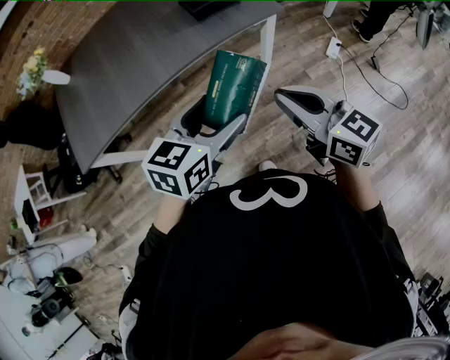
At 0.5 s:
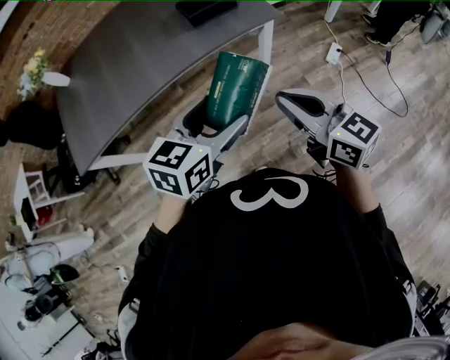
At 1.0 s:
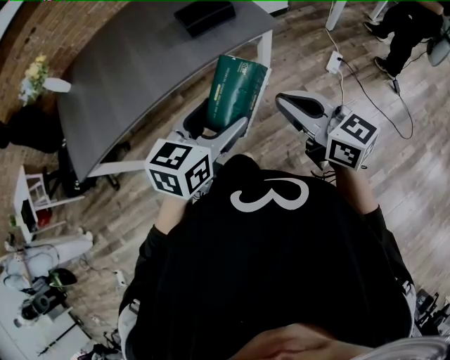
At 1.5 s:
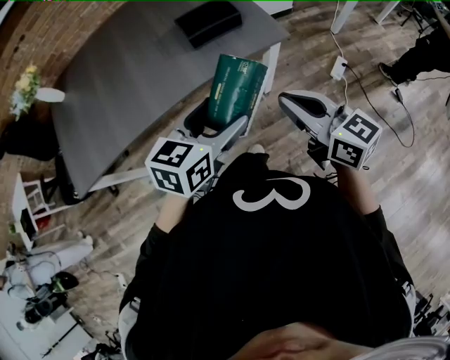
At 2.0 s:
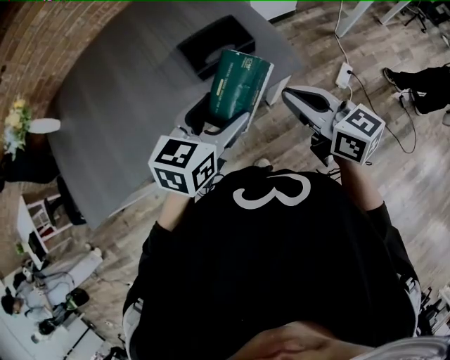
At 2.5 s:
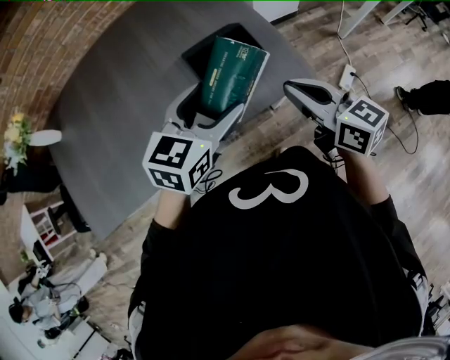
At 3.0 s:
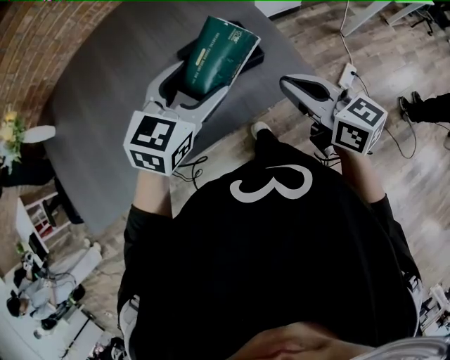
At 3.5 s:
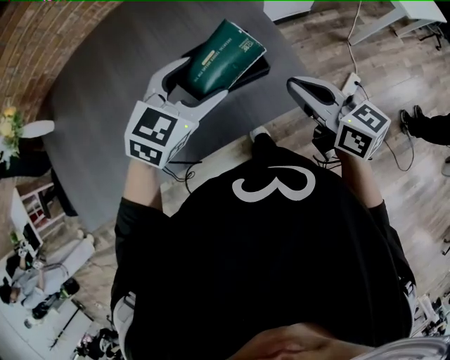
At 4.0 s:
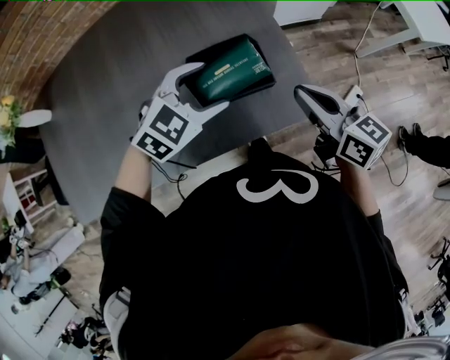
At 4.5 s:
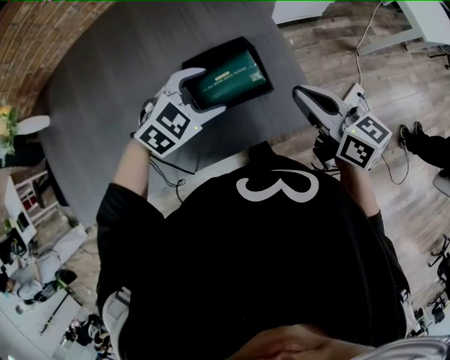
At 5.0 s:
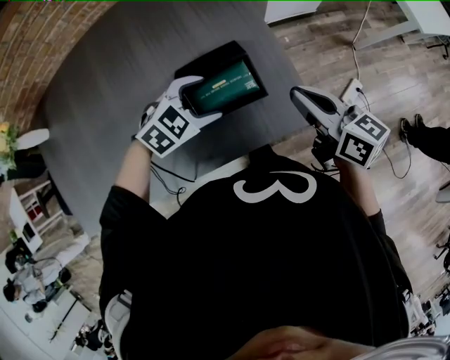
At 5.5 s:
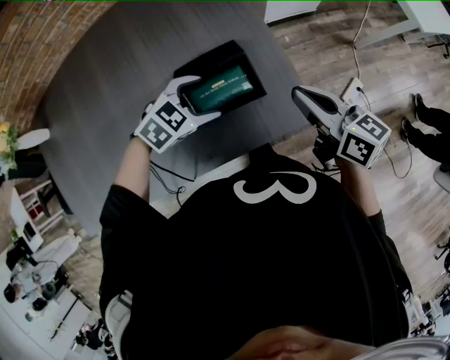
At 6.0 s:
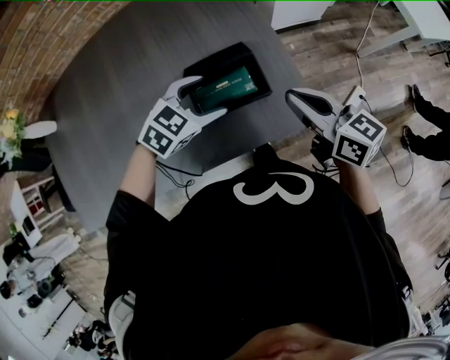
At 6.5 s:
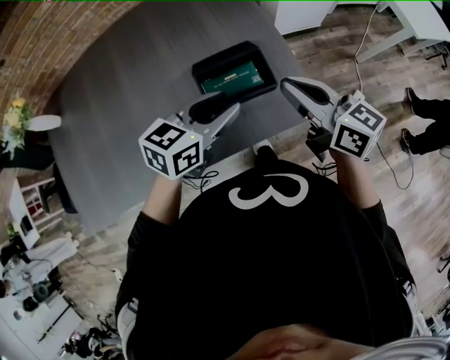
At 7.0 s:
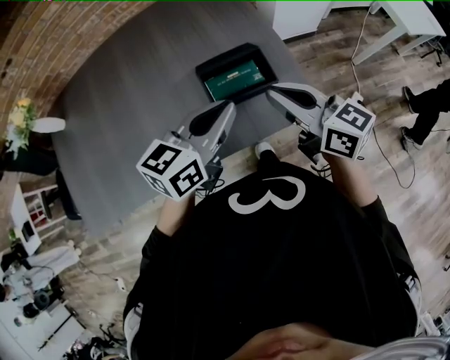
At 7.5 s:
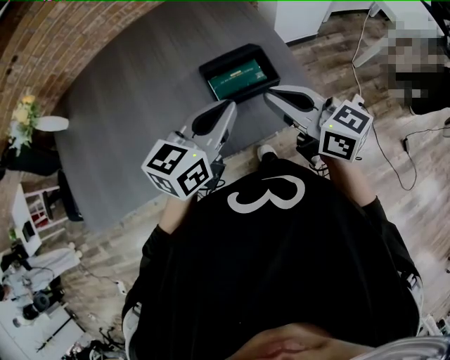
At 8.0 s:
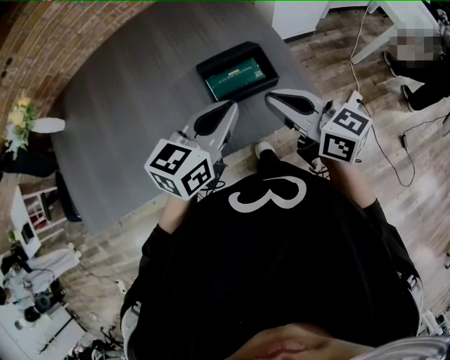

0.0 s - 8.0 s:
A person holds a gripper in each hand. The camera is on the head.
0.0 s - 2.0 s: Both grippers travel together forward, about 35 cm.
2.0 s - 4.0 s: Both grippers travel together forward, approximately 15 cm. The left gripper rotates about 30 degrees.
4.0 s - 6.0 s: The left gripper heads downward, covering some 5 cm.
6.0 s - 8.0 s: The left gripper travels upward and backward by roughly 15 cm, swivels roughly 40 degrees, and closes up; the right gripper heads to the left and backward, covering roughly 10 cm.

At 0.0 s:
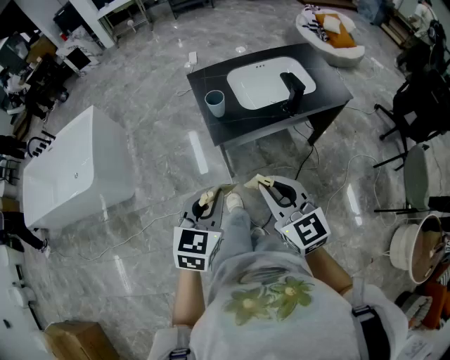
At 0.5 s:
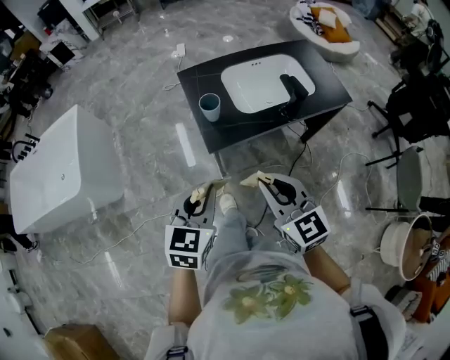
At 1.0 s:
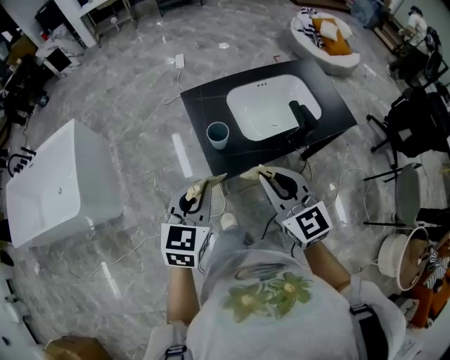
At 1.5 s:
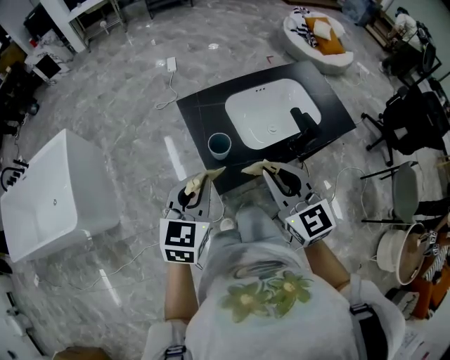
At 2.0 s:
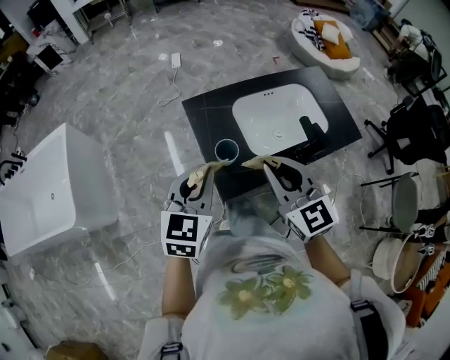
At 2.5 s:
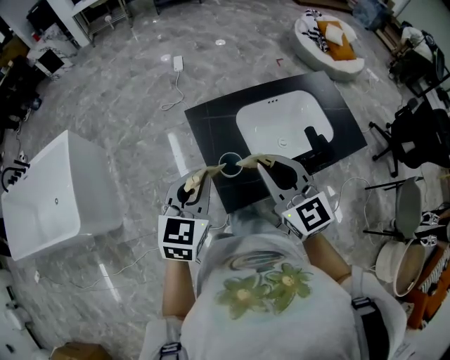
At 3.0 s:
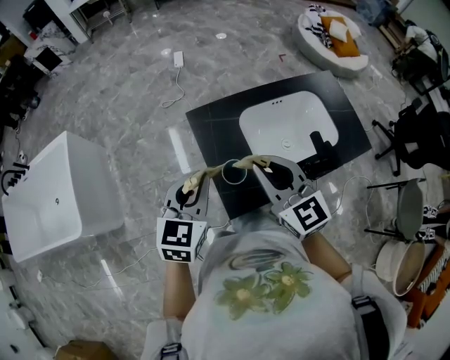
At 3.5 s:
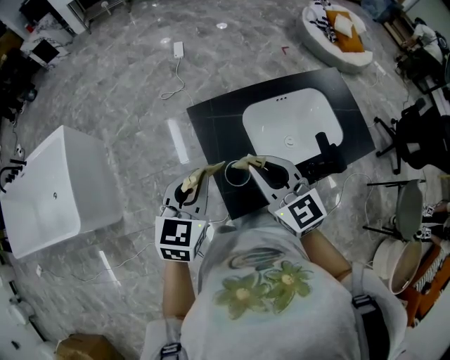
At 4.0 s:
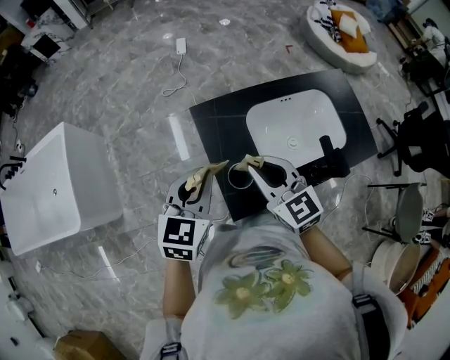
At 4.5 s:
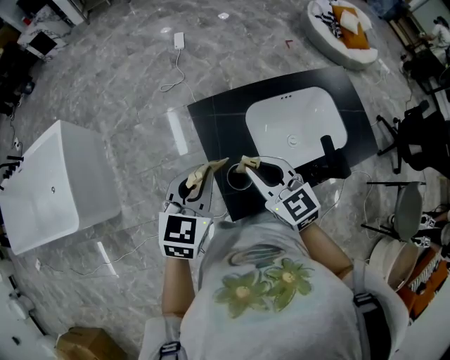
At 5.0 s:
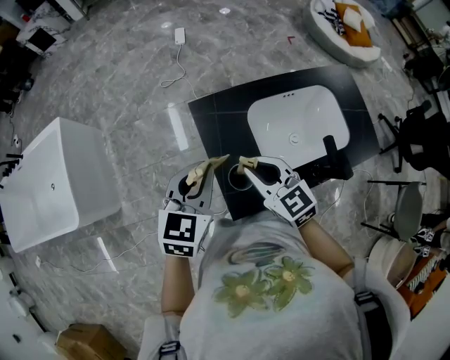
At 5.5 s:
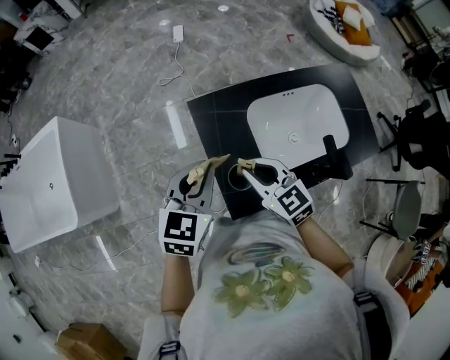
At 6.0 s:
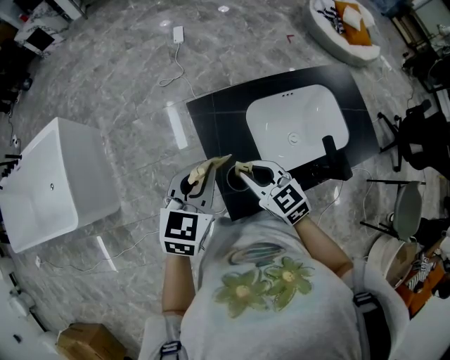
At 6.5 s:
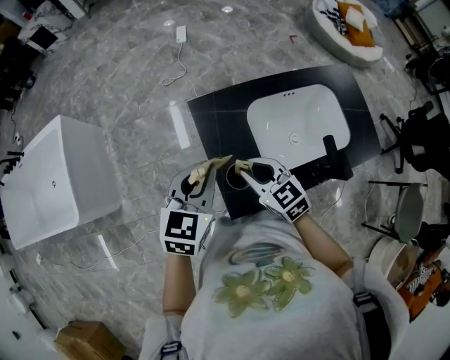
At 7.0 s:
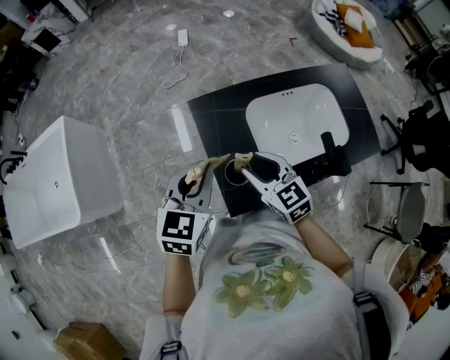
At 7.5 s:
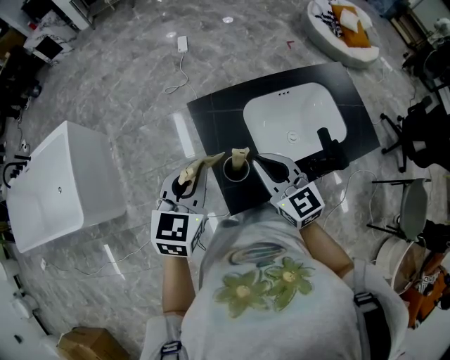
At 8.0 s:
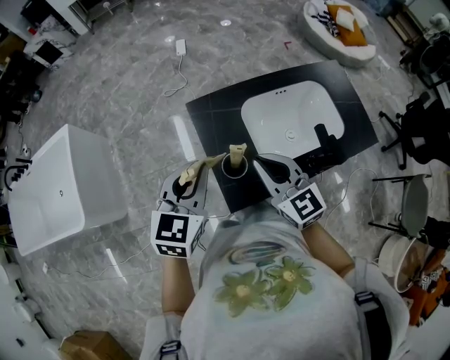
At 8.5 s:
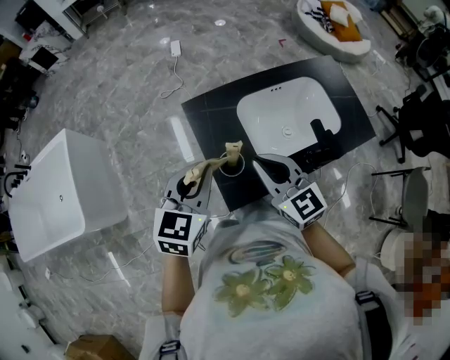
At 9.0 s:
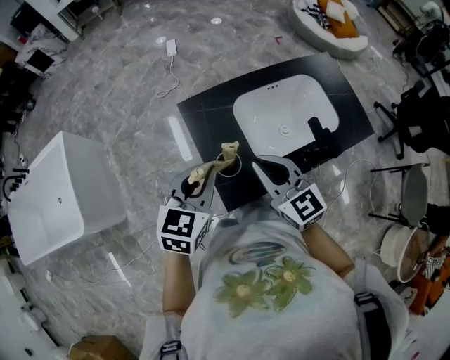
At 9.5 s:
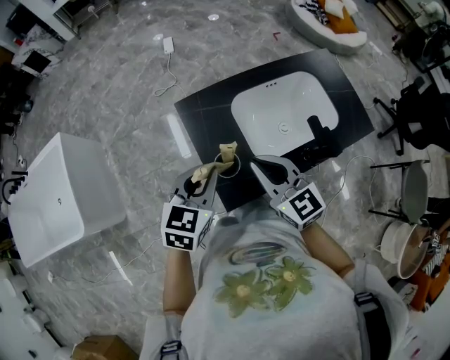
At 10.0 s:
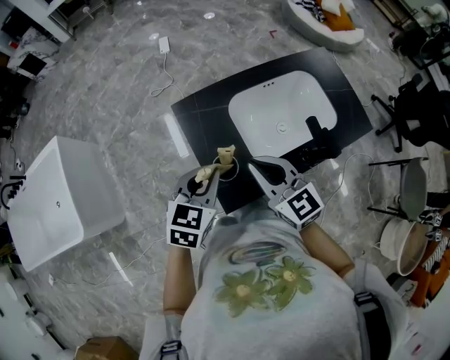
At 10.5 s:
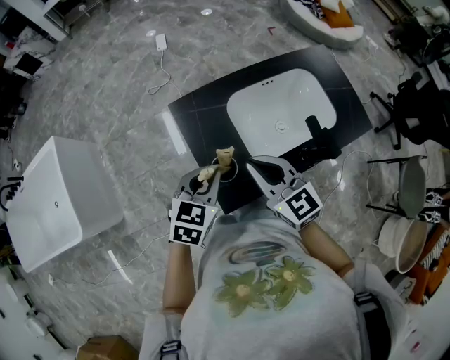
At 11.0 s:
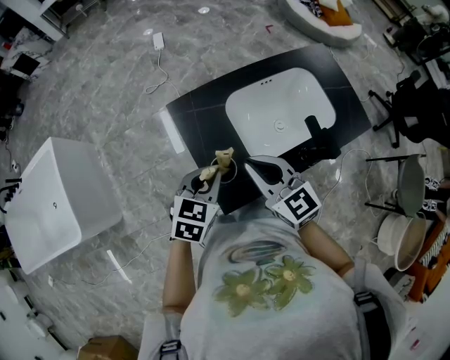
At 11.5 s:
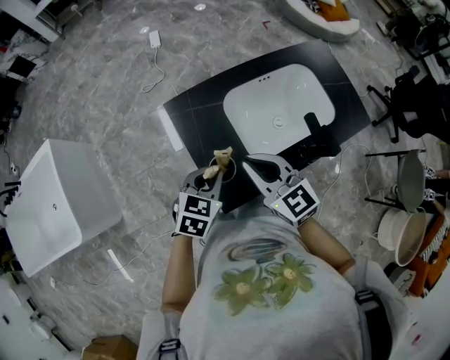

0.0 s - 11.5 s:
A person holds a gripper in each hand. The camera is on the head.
0.0 s - 2.0 s: Both grippers move forward, approximately 40 cm.
2.0 s - 4.0 s: The right gripper shifts about 20 cm forward and downward. The left gripper shifts about 15 cm forward.
4.0 s - 6.0 s: The right gripper heads downward, covering approximately 10 cm.
6.0 s - 7.5 s: The right gripper moves upward, approximately 10 cm, and opens and closes again, while the left gripper changes place by roughly 5 cm.
7.5 s - 9.5 s: The left gripper shifts some 5 cm to the right.
9.5 s - 11.5 s: The left gripper goes roughly 10 cm downward.

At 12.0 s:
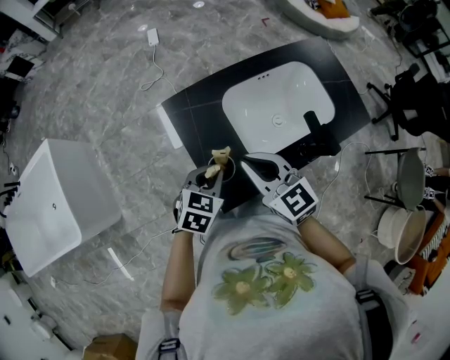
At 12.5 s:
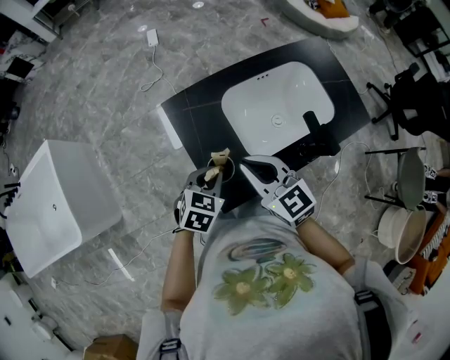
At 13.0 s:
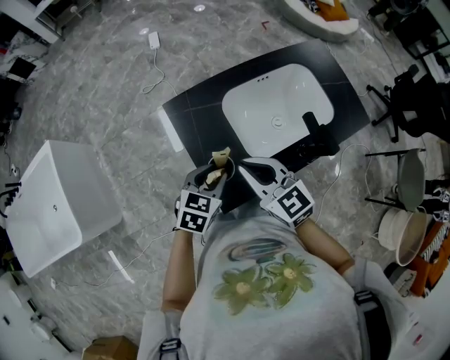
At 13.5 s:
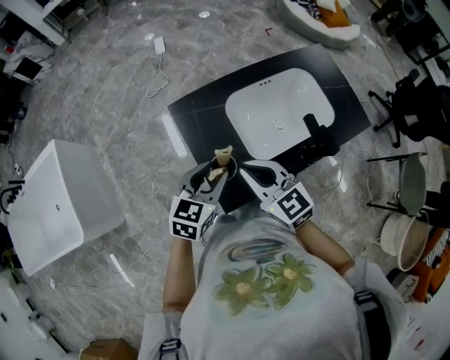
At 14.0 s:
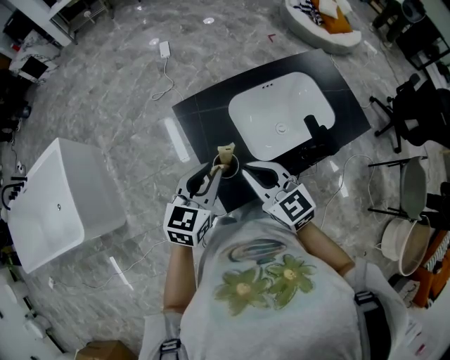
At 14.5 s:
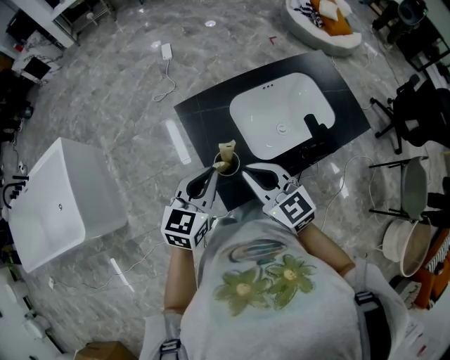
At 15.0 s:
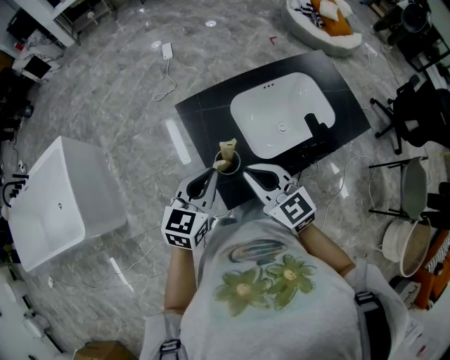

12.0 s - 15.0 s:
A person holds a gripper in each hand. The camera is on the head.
12.0 s - 13.5 s: The left gripper is displaced upward by roughly 5 cm, and opens its fingers.
13.5 s - 15.0 s: The left gripper heads upward, covering approximately 5 cm, and closes up.

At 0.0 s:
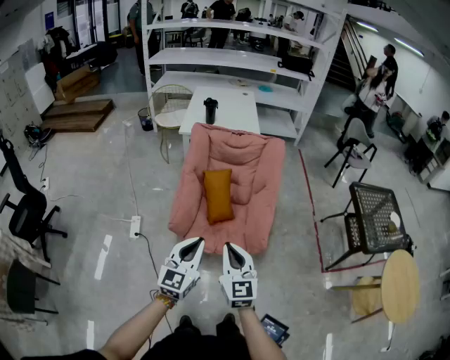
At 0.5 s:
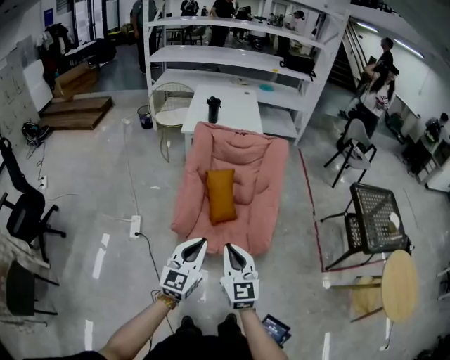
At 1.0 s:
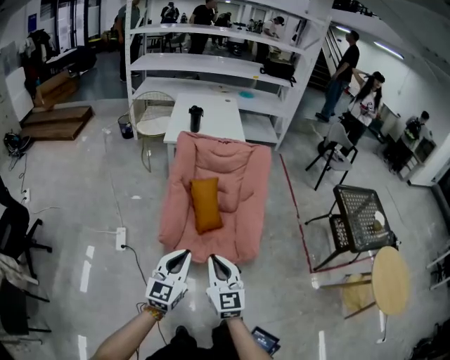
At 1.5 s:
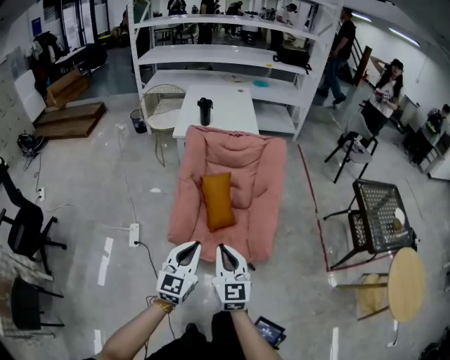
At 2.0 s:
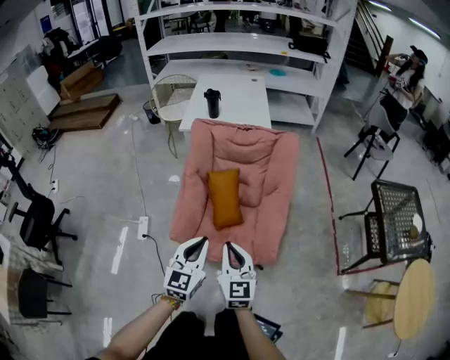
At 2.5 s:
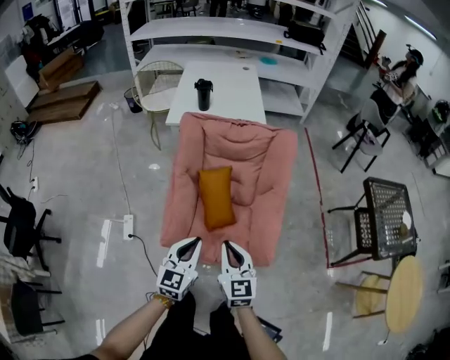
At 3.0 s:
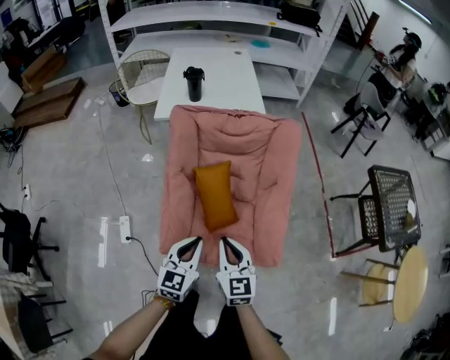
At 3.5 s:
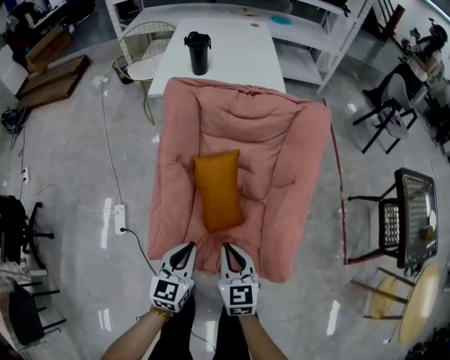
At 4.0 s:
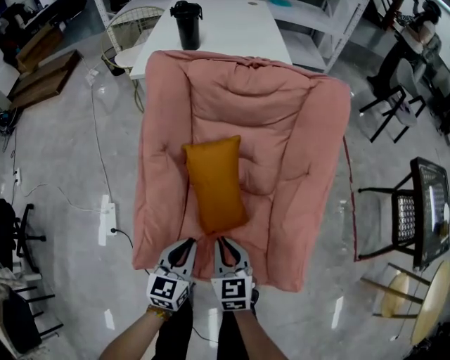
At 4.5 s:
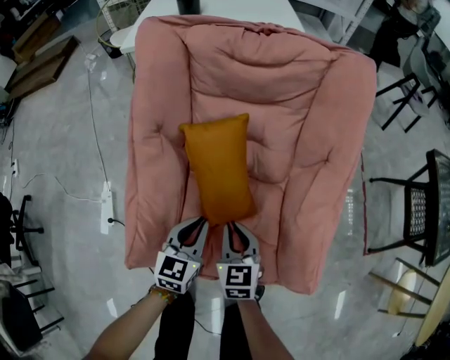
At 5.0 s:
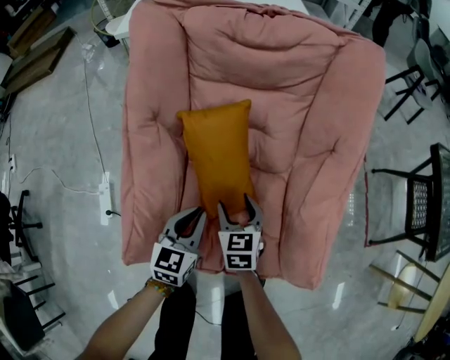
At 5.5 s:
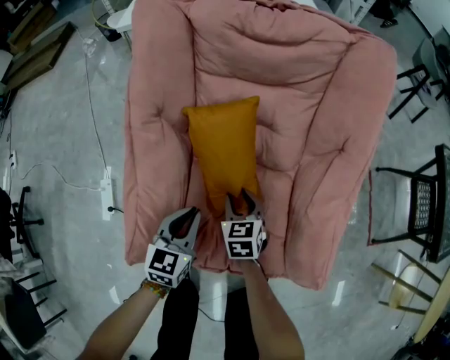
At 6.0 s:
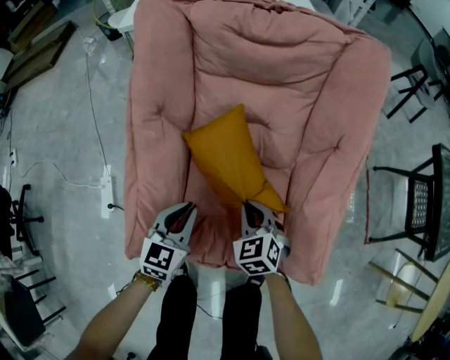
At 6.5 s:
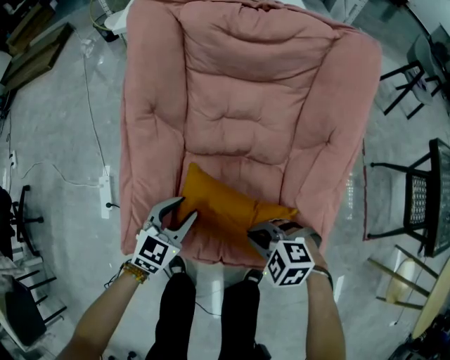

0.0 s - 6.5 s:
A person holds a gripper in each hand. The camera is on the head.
0.0 s - 2.0 s: Both grippers move forward, approximately 15 cm.
2.0 s - 4.5 s: The two grippers go roughly 50 cm downward and forward. The right gripper rotates about 20 degrees.
4.5 s - 6.5 s: The right gripper shifts approximately 10 cm backward and to the right, tilts its fingers roughly 30 degrees downward, and opens, then closes again. The left gripper opens.
